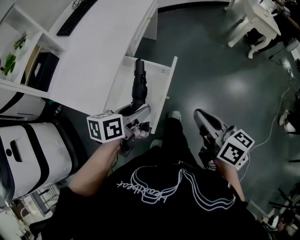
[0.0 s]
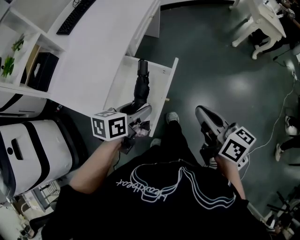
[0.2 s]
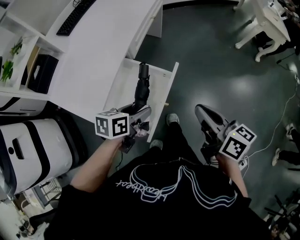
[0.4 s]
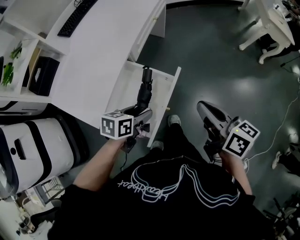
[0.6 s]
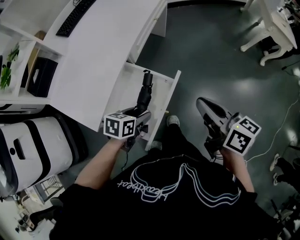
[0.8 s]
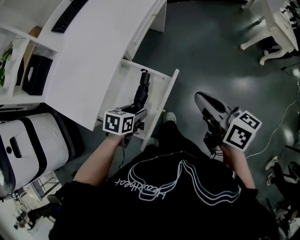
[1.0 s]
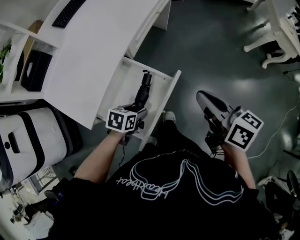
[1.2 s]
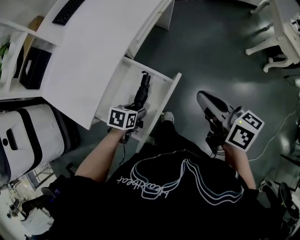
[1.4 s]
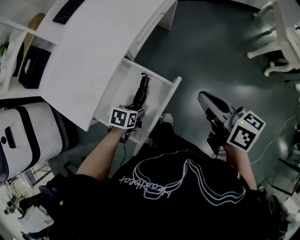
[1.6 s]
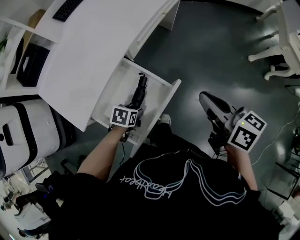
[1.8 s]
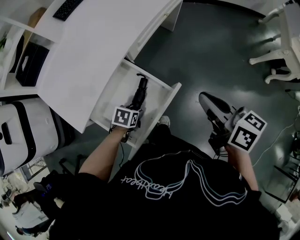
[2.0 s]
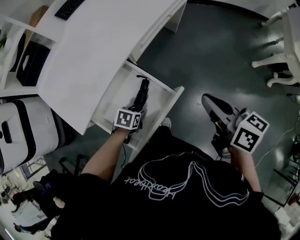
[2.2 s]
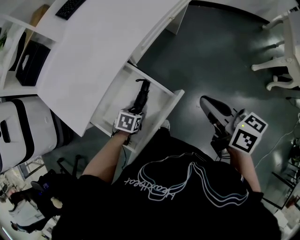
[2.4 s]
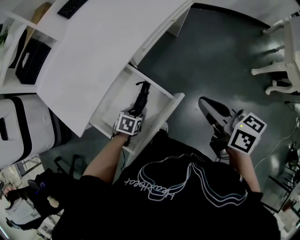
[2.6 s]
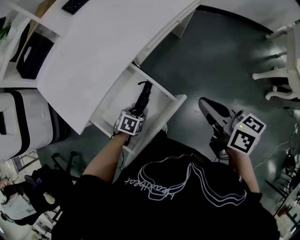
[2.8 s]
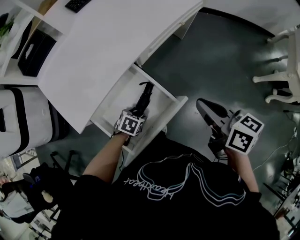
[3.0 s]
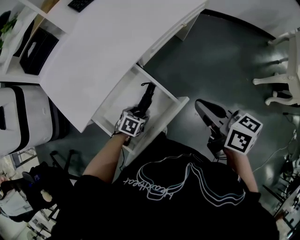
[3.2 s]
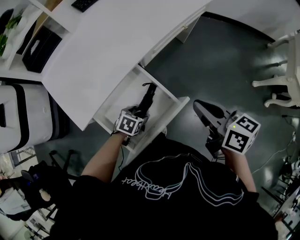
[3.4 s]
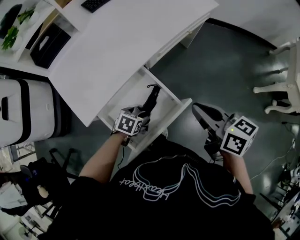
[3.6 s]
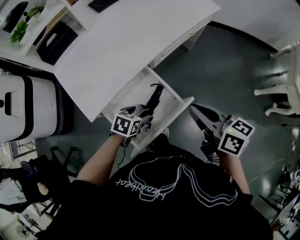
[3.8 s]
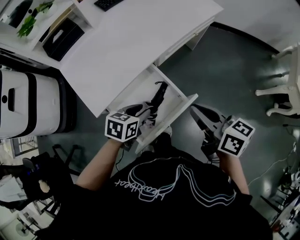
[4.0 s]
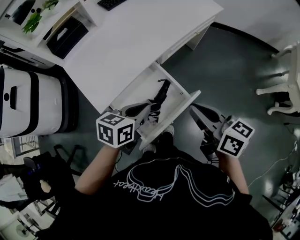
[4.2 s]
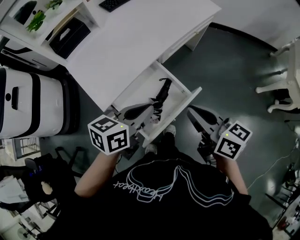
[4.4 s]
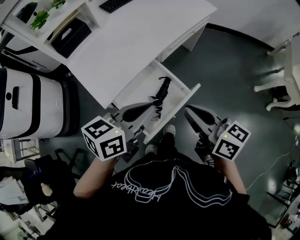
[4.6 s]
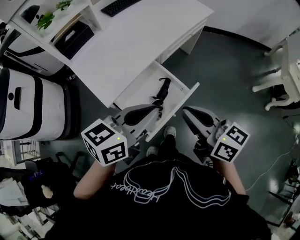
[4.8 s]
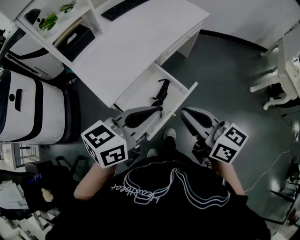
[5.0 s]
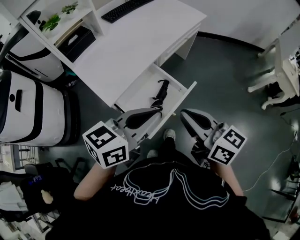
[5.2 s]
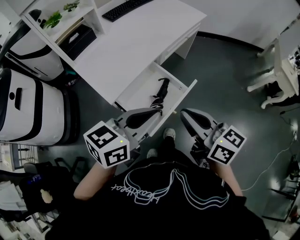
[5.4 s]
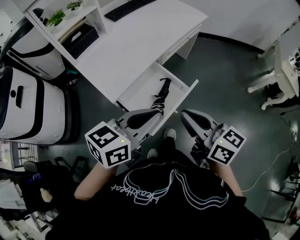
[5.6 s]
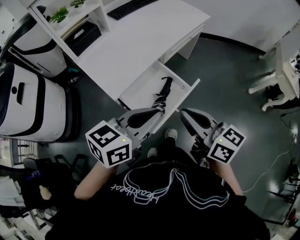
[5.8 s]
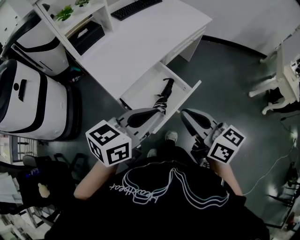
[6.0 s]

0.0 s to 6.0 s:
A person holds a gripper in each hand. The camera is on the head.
0.0 to 1.6 s: The right gripper travels forward by about 20 cm; the left gripper shifts about 20 cm downward, and points its fingers approximately 30 degrees further downward.
1.6 to 3.0 s: The right gripper goes approximately 5 cm forward; the left gripper goes approximately 5 cm downward.
3.0 to 4.4 s: The right gripper is displaced backward, to the left and upward by some 15 cm, while the left gripper heads upward, covering approximately 35 cm, tilts its fingers approximately 40 degrees upward, and closes up.
4.4 to 6.0 s: The right gripper goes approximately 15 cm backward, to the left and upward. Meanwhile the left gripper travels backward and upward by roughly 15 cm.

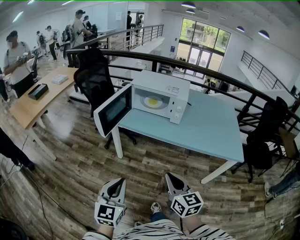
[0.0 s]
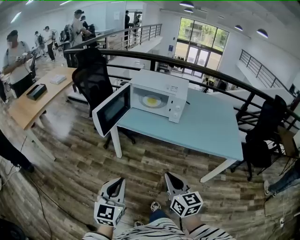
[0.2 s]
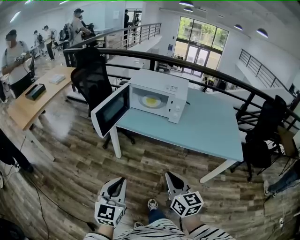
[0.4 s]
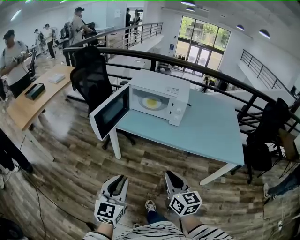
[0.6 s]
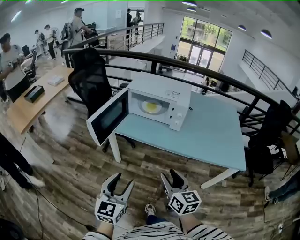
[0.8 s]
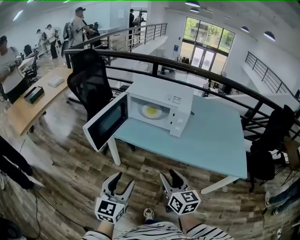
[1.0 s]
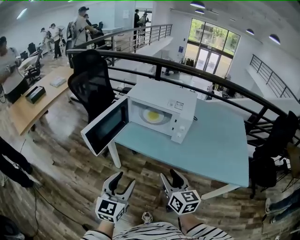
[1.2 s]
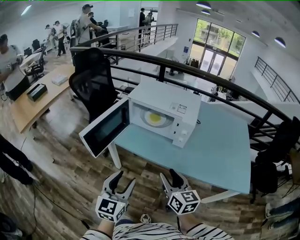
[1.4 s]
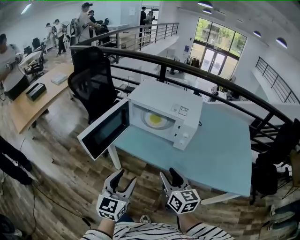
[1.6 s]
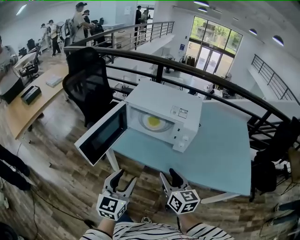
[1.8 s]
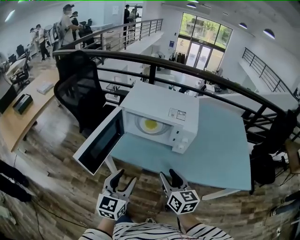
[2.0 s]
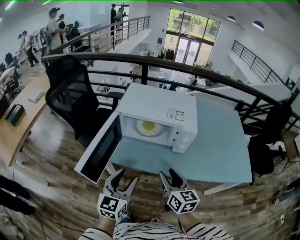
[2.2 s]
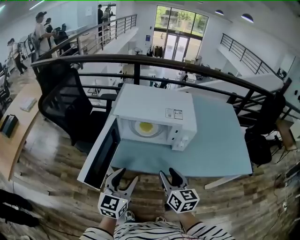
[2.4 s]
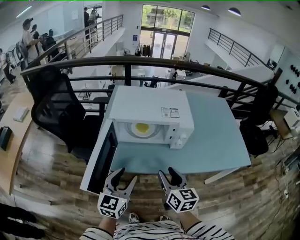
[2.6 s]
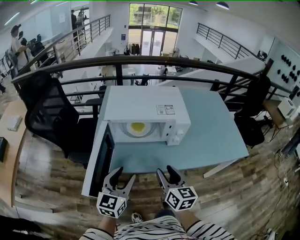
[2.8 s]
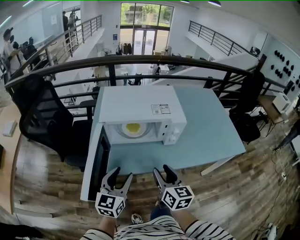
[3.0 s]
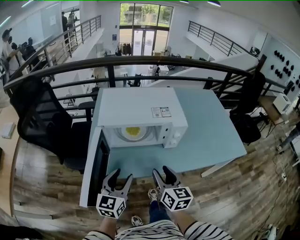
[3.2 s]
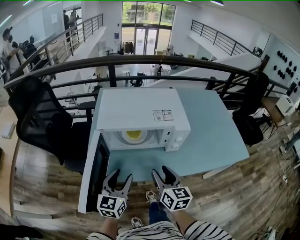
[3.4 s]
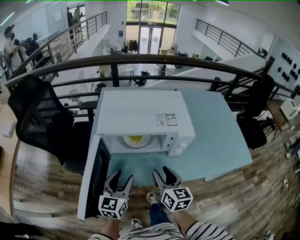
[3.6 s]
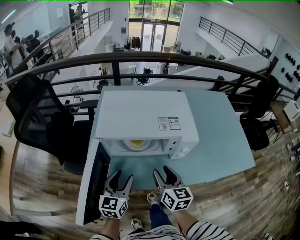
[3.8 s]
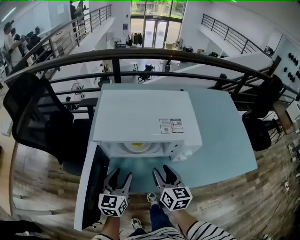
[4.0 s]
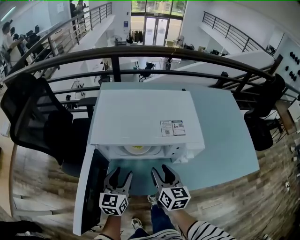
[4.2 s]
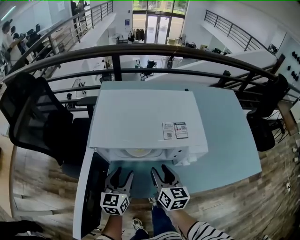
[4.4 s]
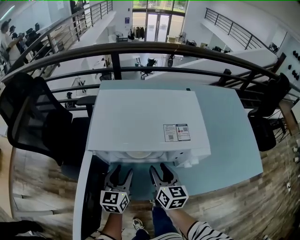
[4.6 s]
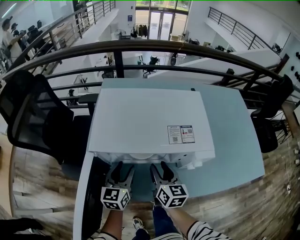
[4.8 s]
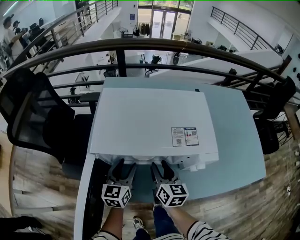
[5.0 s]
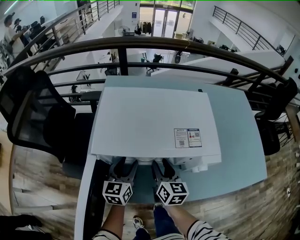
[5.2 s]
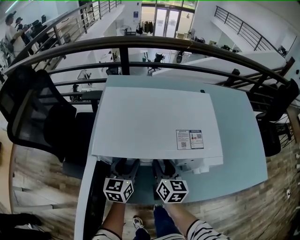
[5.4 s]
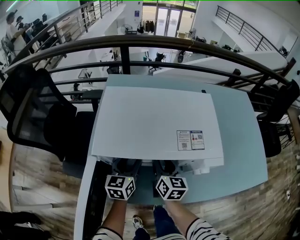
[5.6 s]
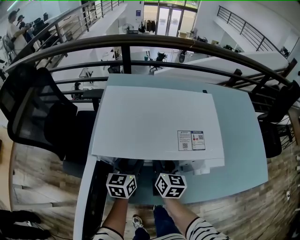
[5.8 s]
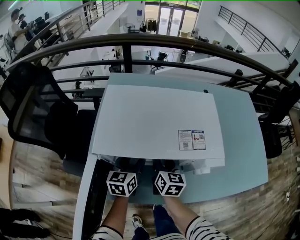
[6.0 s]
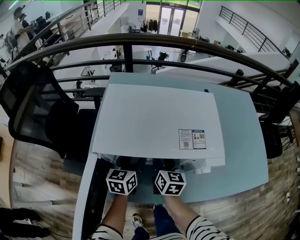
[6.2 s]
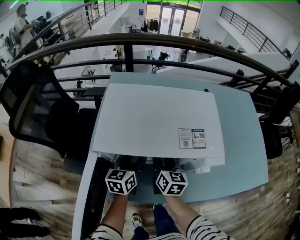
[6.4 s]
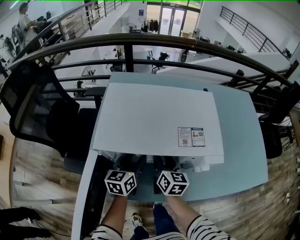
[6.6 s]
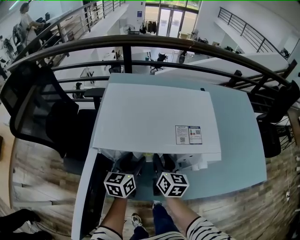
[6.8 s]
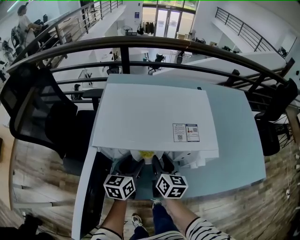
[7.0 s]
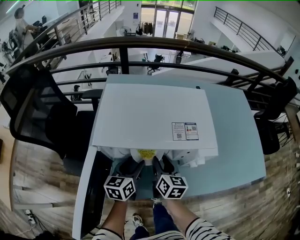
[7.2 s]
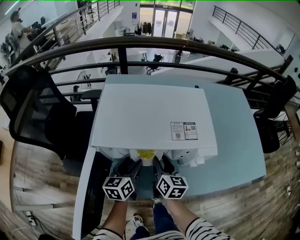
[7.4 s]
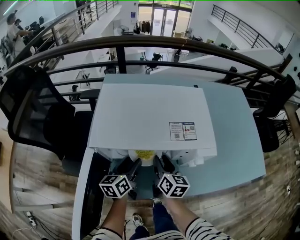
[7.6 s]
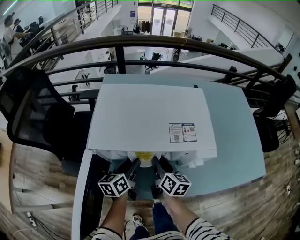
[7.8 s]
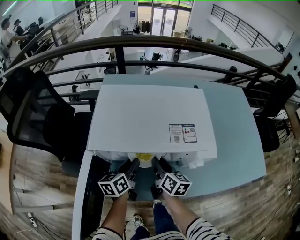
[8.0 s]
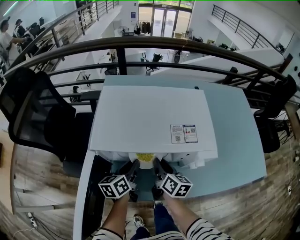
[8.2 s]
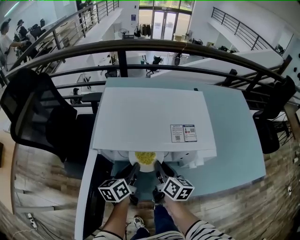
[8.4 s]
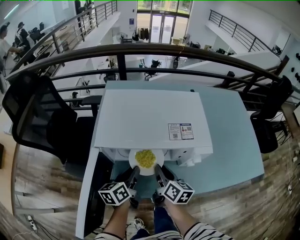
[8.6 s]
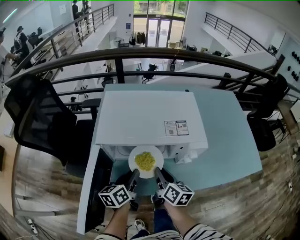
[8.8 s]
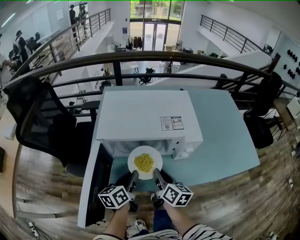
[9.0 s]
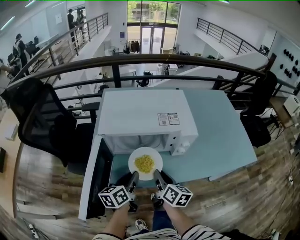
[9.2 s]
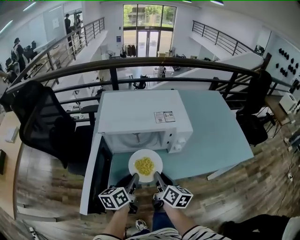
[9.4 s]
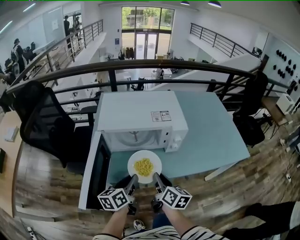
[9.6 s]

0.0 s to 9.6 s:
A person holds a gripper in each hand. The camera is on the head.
0.0 to 1.6 s: The two grippers go roughly 25 cm forward. The right gripper opens, while the left gripper opens.
1.6 to 3.2 s: The right gripper moves roughly 15 cm, and swivels about 30 degrees. Meanwhile the left gripper shifts by about 20 cm, and turns by some 30 degrees.
3.2 to 4.8 s: The grippers both shift forward and downward by about 20 cm.
4.8 to 6.4 s: The two grippers go some 5 cm forward.
6.4 to 8.0 s: The left gripper closes up.
8.0 to 9.6 s: The left gripper is displaced backward and upward by some 20 cm. Meanwhile the right gripper shifts roughly 20 cm backward.

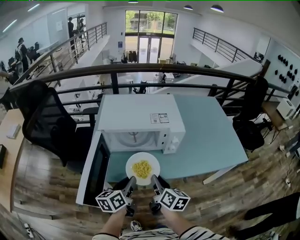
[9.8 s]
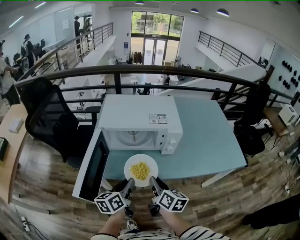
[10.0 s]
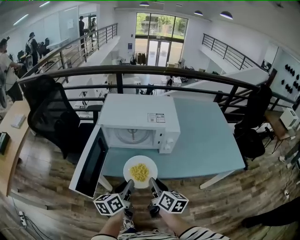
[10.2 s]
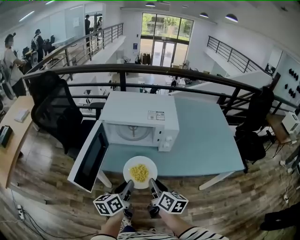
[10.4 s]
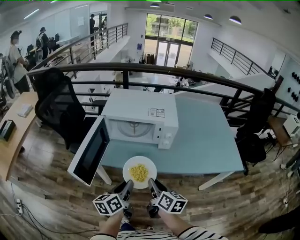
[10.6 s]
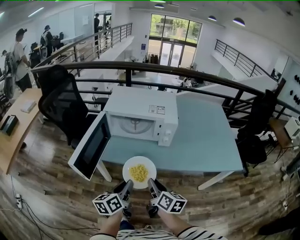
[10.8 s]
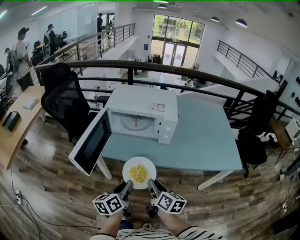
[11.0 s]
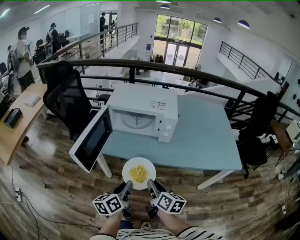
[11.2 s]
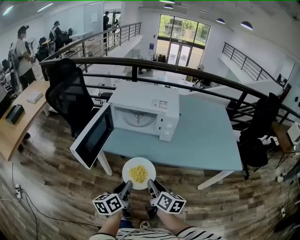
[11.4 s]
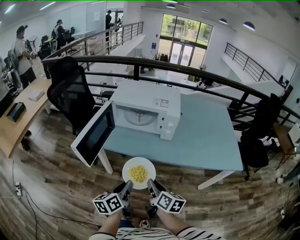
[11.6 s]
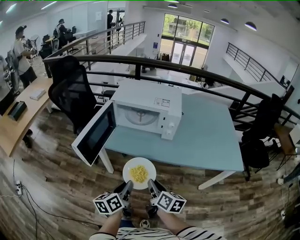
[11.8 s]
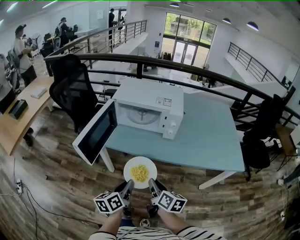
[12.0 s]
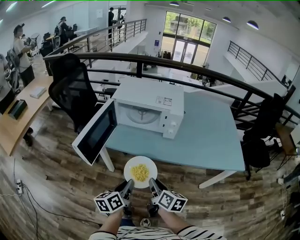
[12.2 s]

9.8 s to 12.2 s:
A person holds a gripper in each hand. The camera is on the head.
9.8 to 11.0 s: The right gripper heads backward and to the right, covering about 15 cm, while the left gripper moves backward, about 15 cm.
11.0 to 12.2 s: The grippers move only a little.

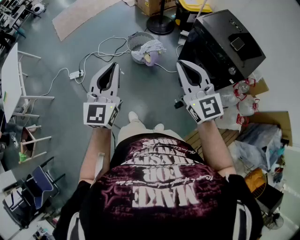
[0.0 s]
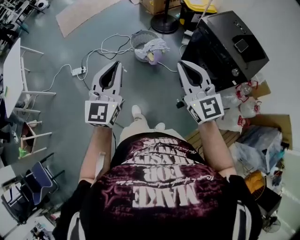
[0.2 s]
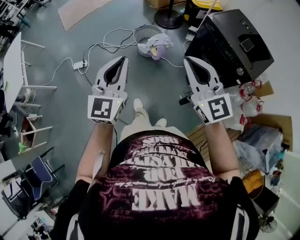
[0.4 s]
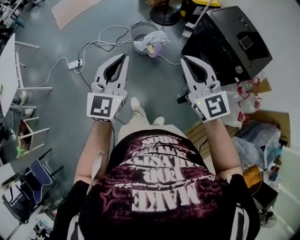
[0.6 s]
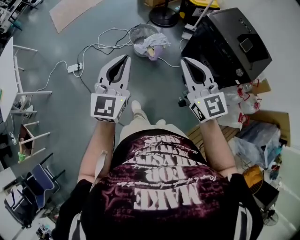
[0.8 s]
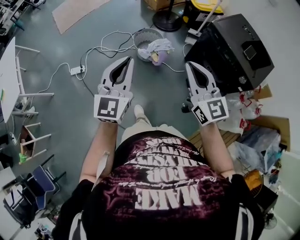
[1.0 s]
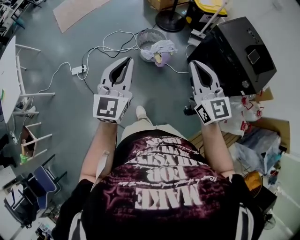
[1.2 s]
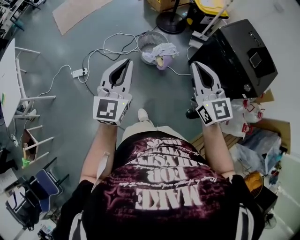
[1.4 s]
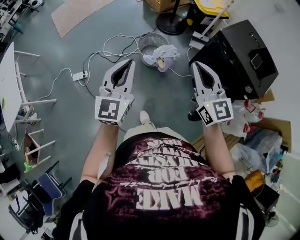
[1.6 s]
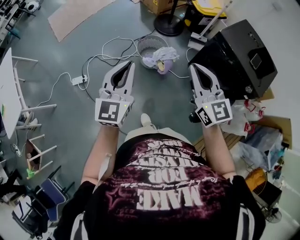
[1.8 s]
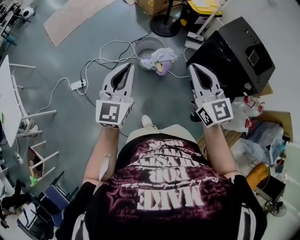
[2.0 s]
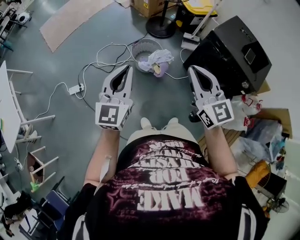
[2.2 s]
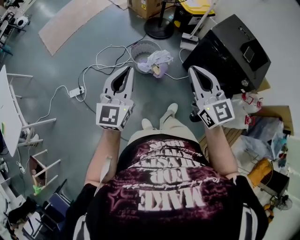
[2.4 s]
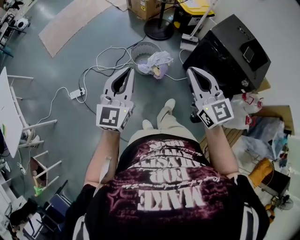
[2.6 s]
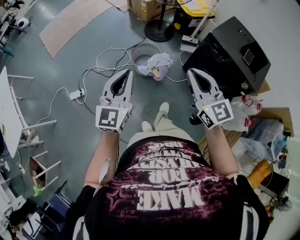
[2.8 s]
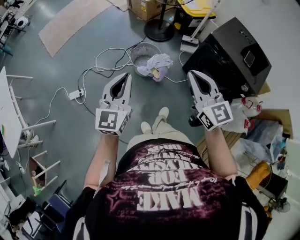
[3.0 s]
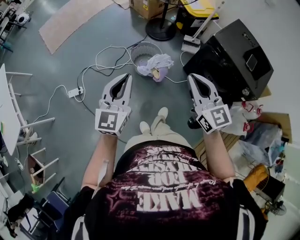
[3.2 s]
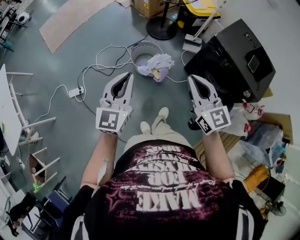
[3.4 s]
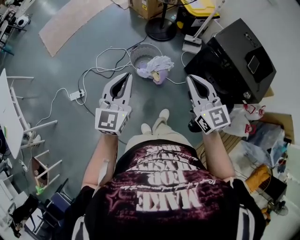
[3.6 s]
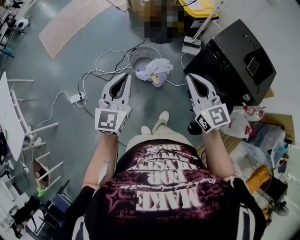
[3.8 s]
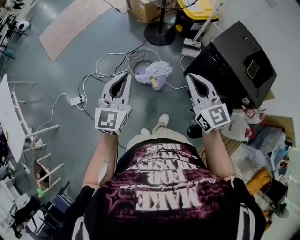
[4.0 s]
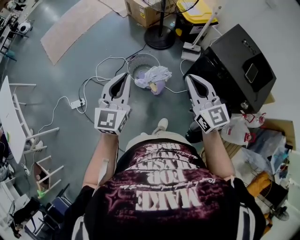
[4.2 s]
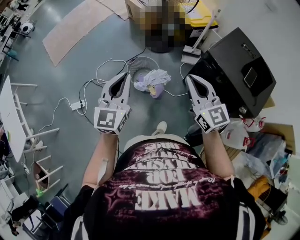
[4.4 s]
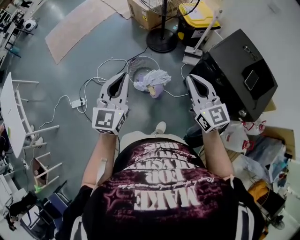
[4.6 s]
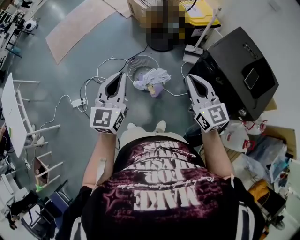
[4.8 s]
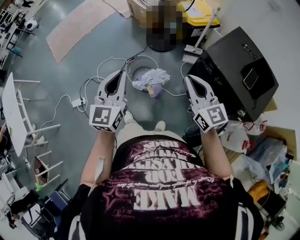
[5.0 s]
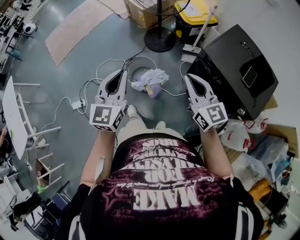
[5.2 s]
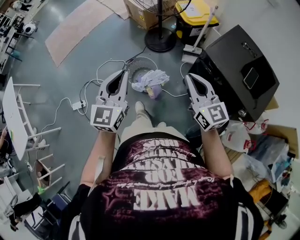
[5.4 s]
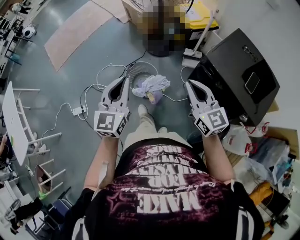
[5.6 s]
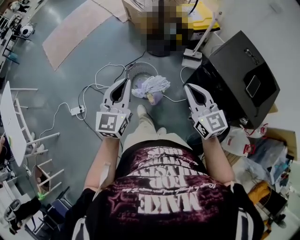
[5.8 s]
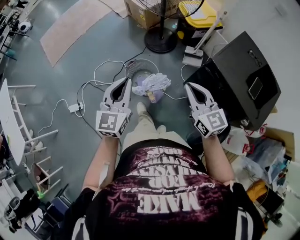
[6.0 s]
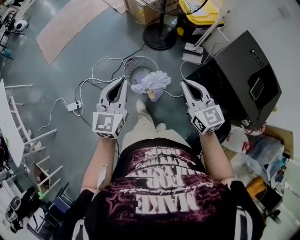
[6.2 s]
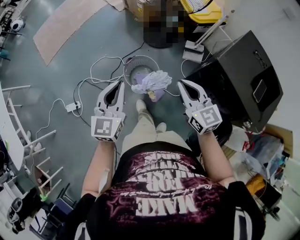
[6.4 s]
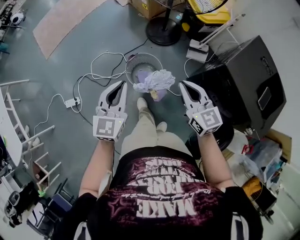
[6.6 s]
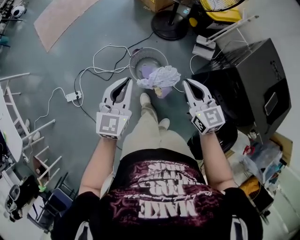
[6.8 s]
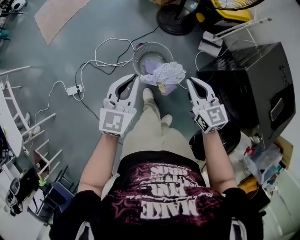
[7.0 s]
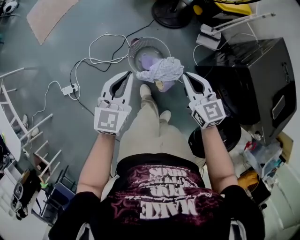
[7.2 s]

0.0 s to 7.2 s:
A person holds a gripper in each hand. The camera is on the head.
0.0 to 1.4 s: The left gripper shifts roughly 15 cm forward and to the left. The right gripper moves forward, approximately 15 cm.
1.4 to 2.8 s: The left gripper shifts about 5 cm forward.
2.8 to 4.4 s: The grippers both shift forward and to the right by some 20 cm.
4.4 to 5.8 s: The left gripper moves forward, roughly 5 cm. Meanwhile the right gripper shifts by about 10 cm.
5.8 to 7.2 s: Both grippers travel together downward, forward and to the left, roughly 25 cm.
